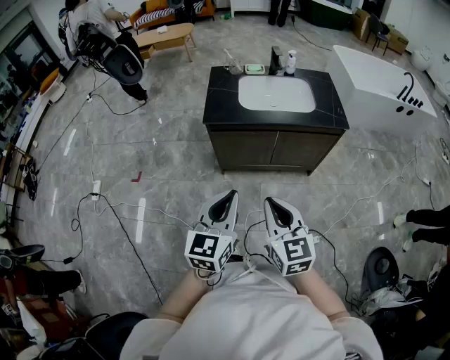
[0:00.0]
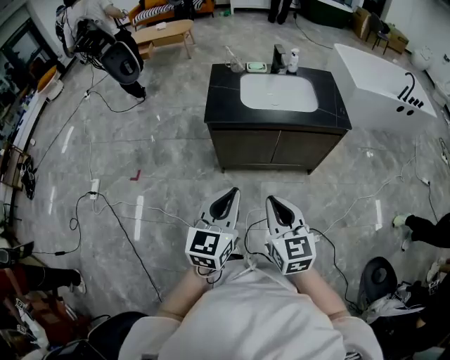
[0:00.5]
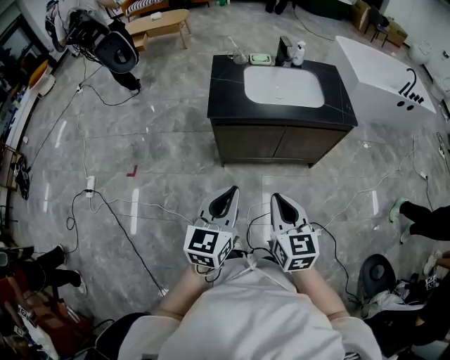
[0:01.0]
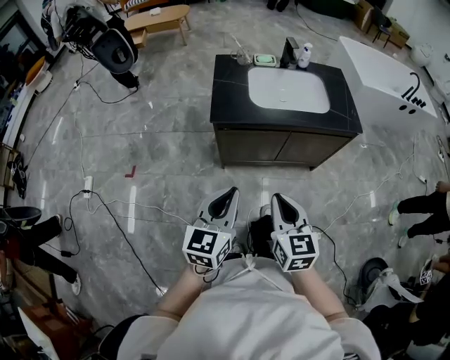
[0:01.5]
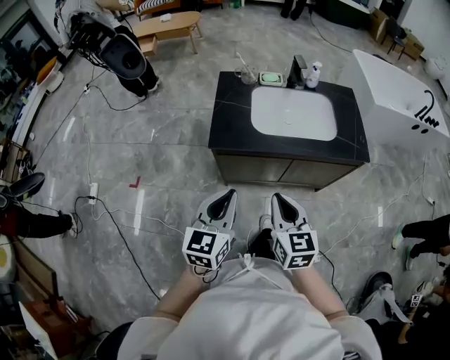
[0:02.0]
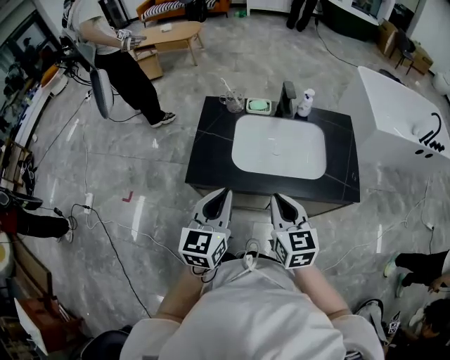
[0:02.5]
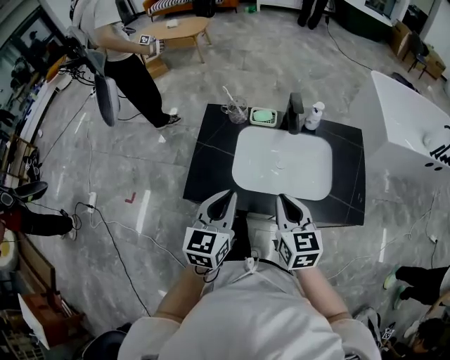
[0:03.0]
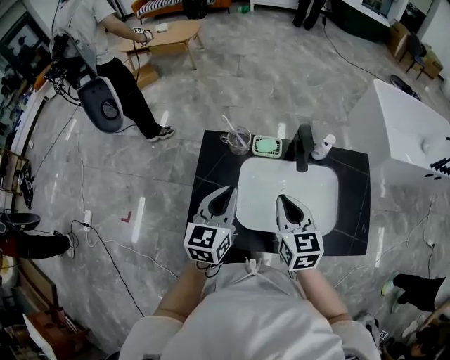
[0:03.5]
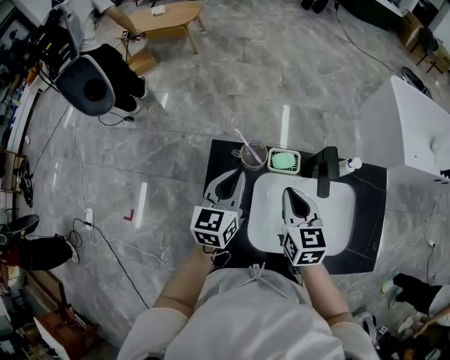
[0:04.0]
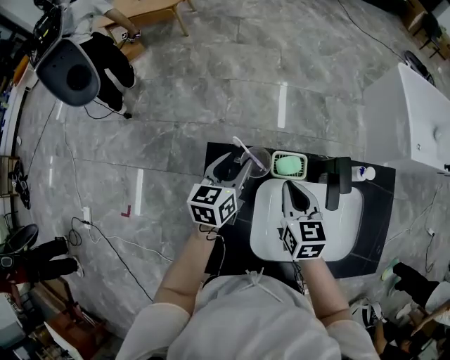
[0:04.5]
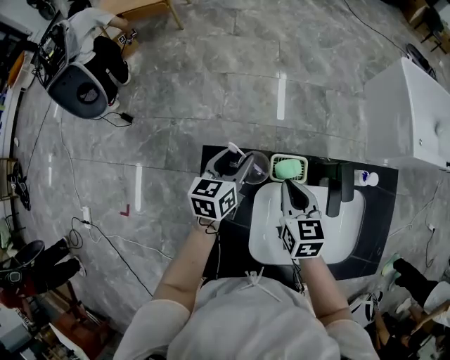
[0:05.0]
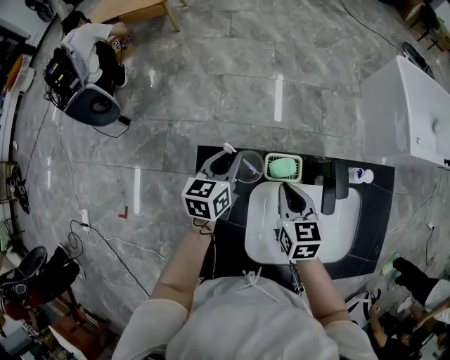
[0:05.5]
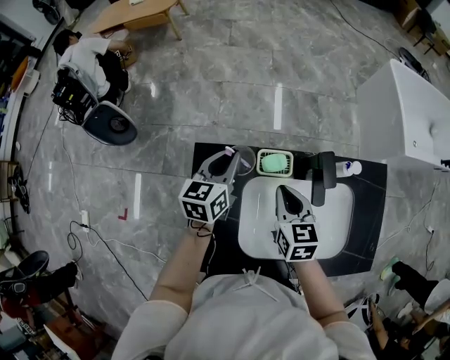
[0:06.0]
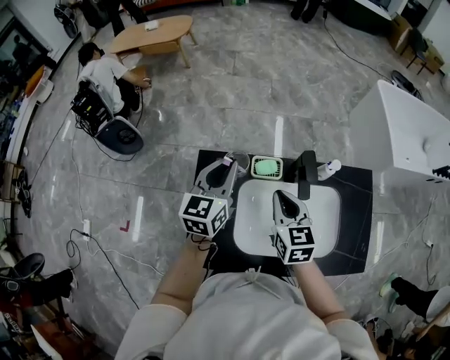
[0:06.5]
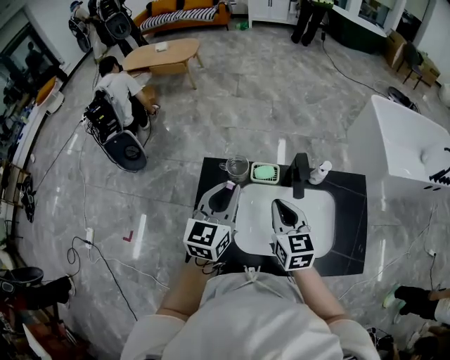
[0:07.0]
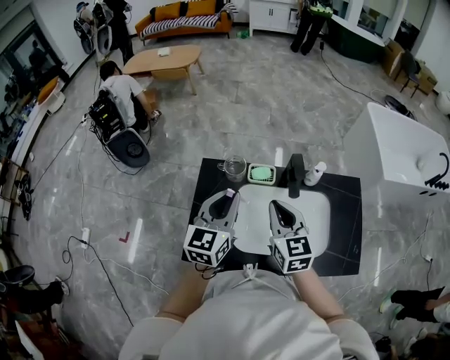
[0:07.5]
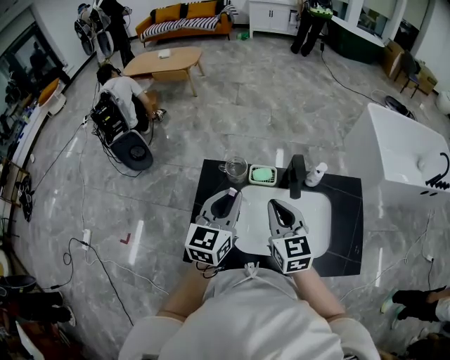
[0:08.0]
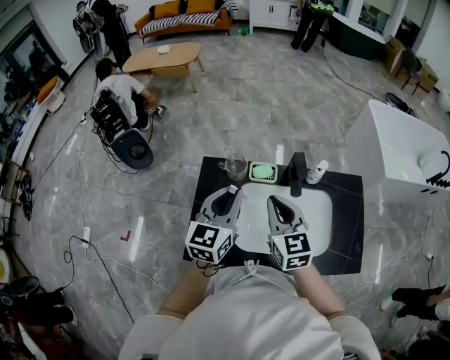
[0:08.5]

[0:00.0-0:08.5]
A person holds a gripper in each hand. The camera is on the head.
0:00.0 to 0:02.0: The grippers both shift forward by about 20 cm.
0:02.0 to 0:04.0: The pair of grippers is taken forward, some 50 cm.
0:04.0 to 0:06.5: The left gripper moves about 10 cm downward and comes back, and opens, then closes again. The right gripper moves some 10 cm downward and comes back.
0:06.5 to 0:08.5: The right gripper is displaced upward and backward by about 10 cm, while the left gripper moves backward, roughly 10 cm.

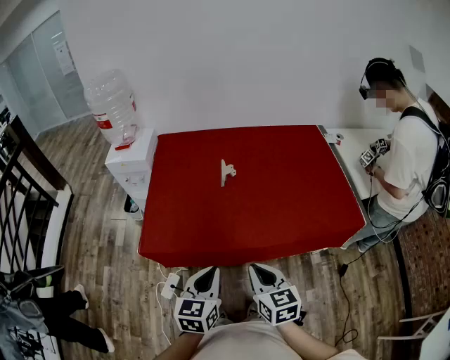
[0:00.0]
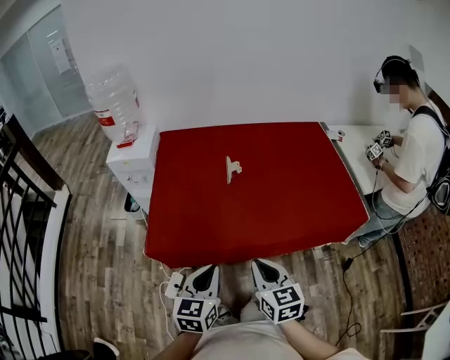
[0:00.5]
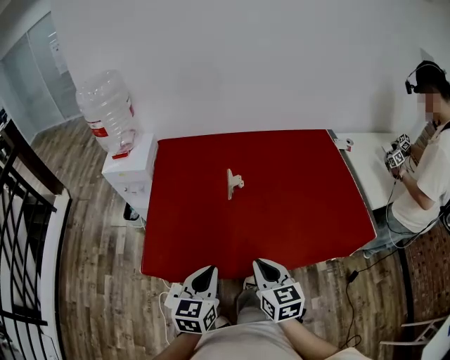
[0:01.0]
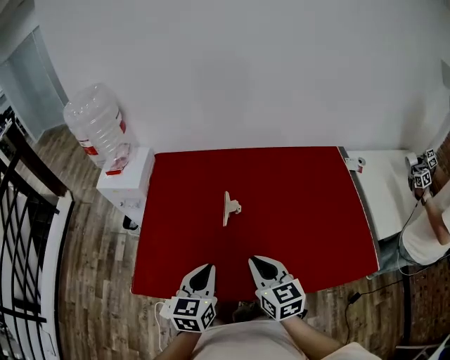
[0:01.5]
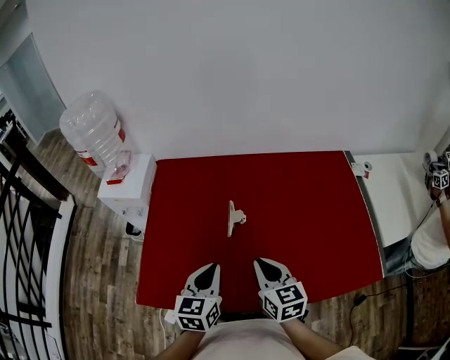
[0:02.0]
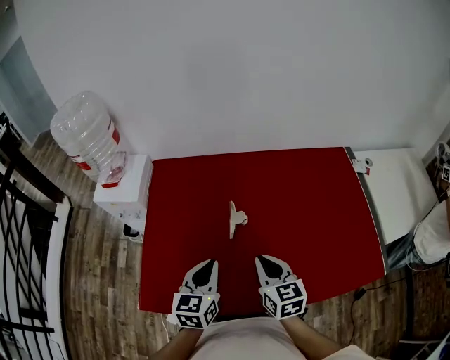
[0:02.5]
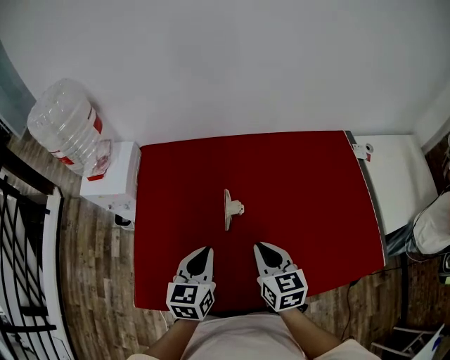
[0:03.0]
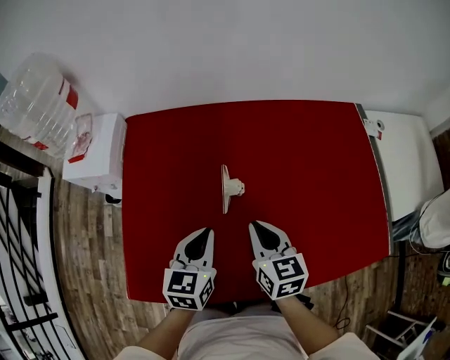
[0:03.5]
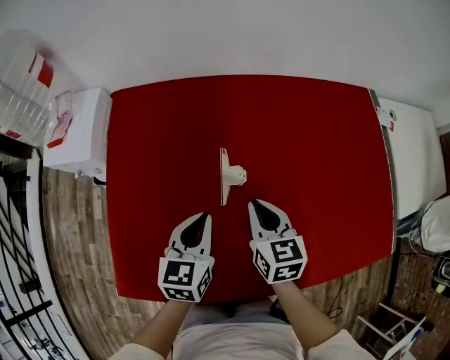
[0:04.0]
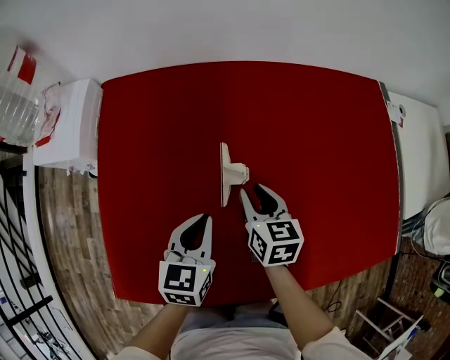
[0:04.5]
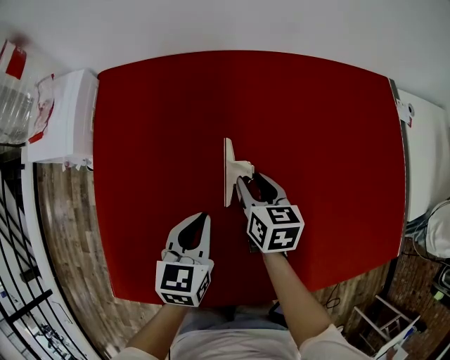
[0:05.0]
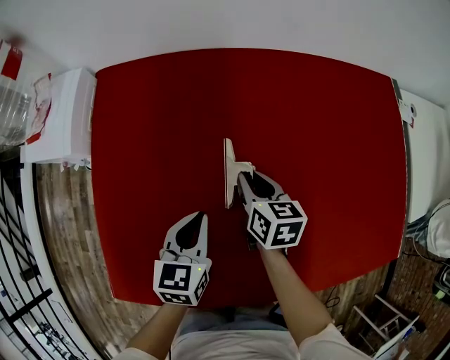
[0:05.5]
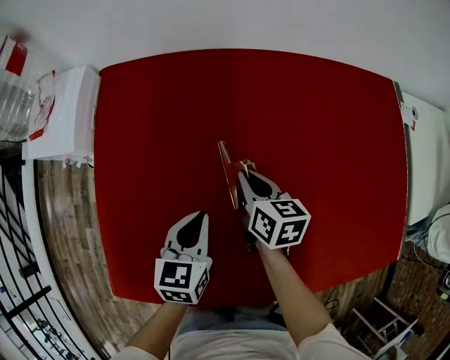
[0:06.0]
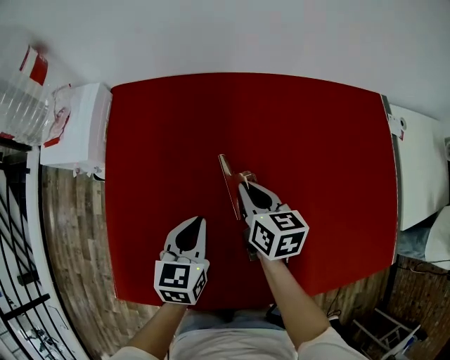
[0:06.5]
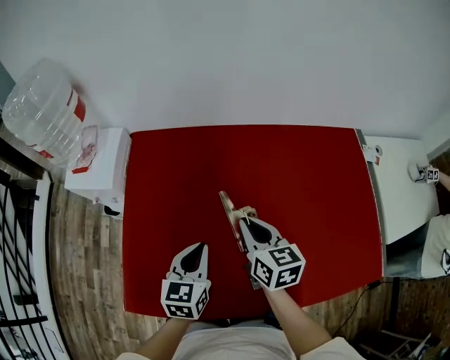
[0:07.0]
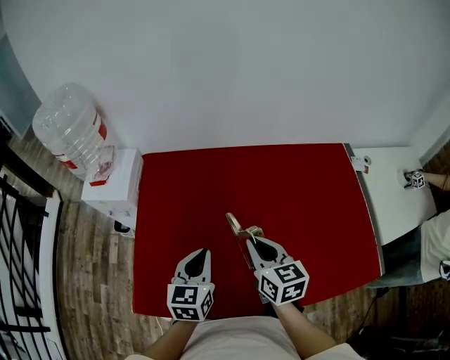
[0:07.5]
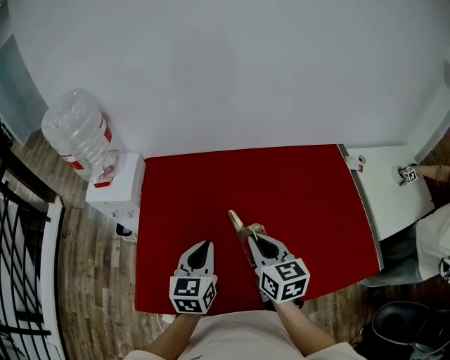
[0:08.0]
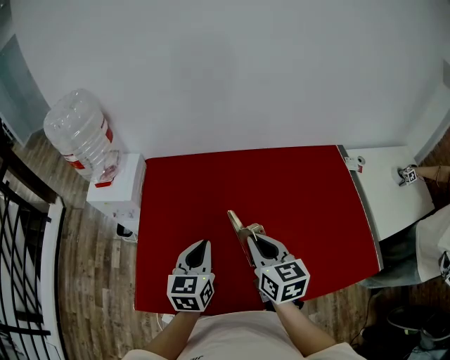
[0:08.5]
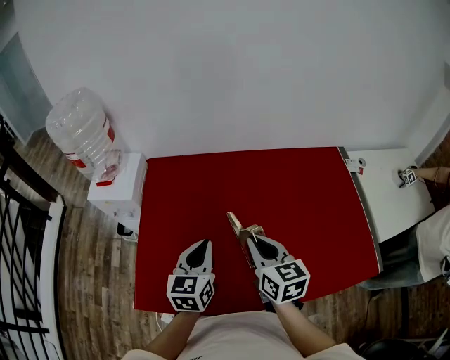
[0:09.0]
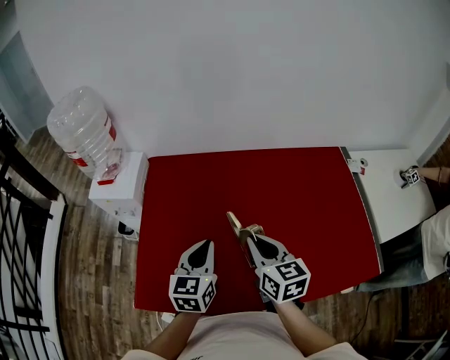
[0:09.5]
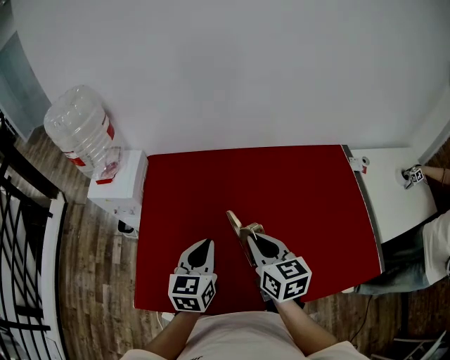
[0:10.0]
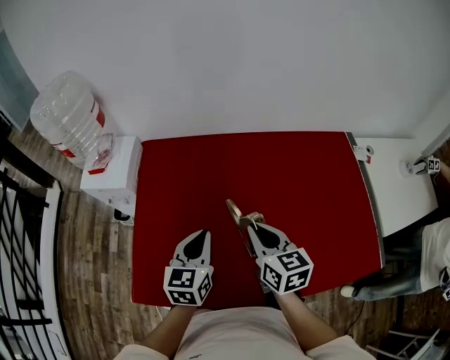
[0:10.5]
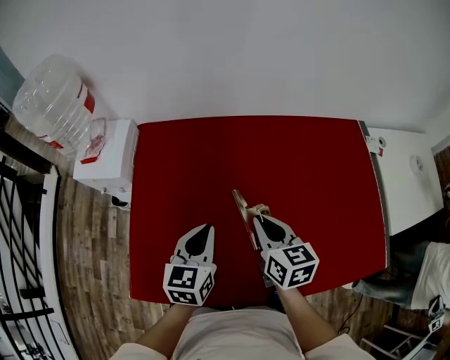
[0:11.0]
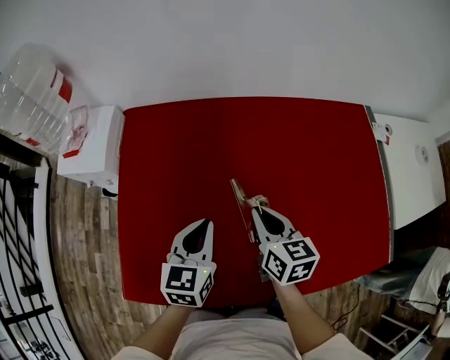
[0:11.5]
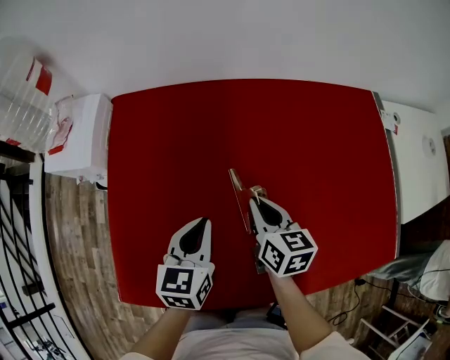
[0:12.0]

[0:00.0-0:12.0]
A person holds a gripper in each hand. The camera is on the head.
0:00.0 to 0:02.0: Both grippers travel together forward, some 30 cm.
0:02.0 to 0:04.0: Both grippers move forward and downward, roughly 20 cm.
0:04.0 to 0:06.0: The left gripper moves downward, approximately 10 cm; the right gripper goes roughly 10 cm downward and forward, and opens, then closes again.
0:06.0 to 0:08.0: The right gripper shifts some 30 cm upward and backward, and rotates approximately 20 degrees; the left gripper shifts approximately 25 cm upward.
0:08.0 to 0:10.0: Both grippers stay about where they are.
0:10.0 to 0:12.0: The two grippers go roughly 20 cm downward and forward.

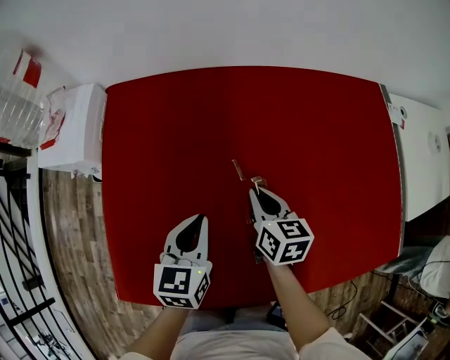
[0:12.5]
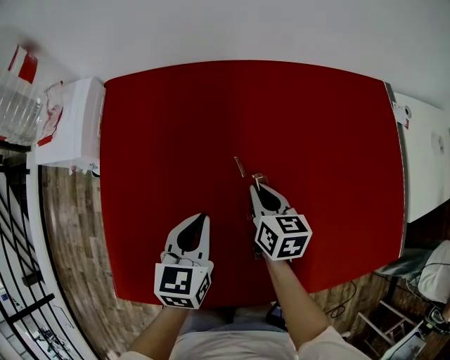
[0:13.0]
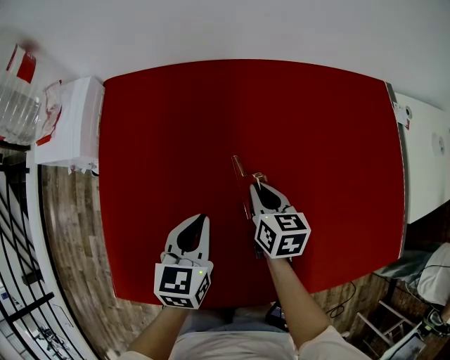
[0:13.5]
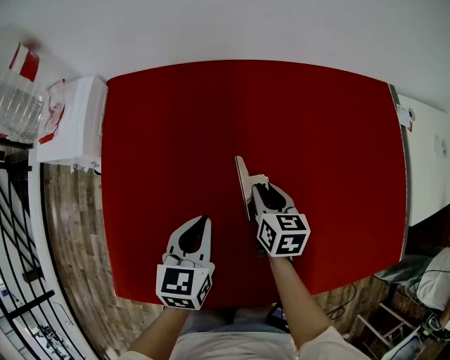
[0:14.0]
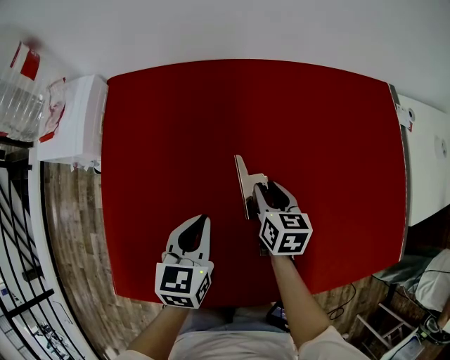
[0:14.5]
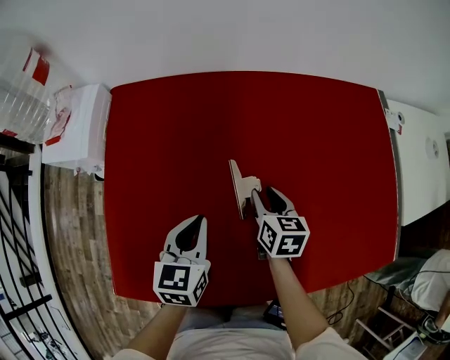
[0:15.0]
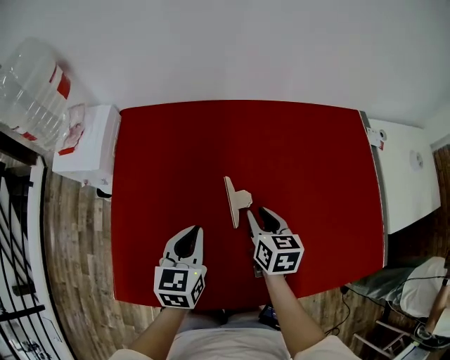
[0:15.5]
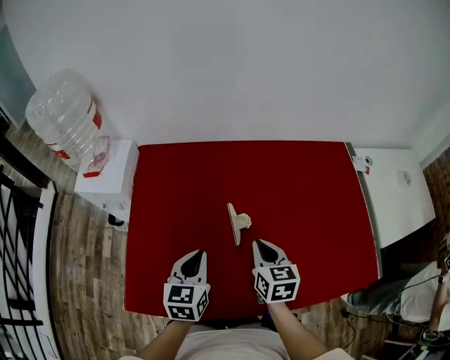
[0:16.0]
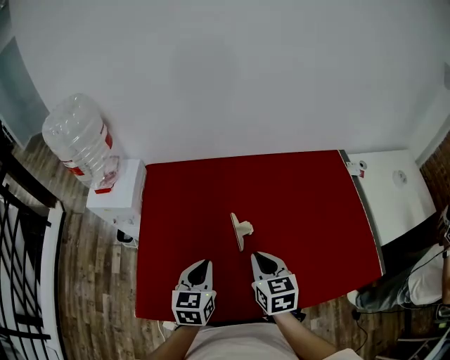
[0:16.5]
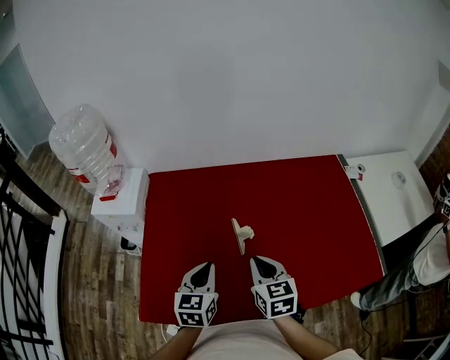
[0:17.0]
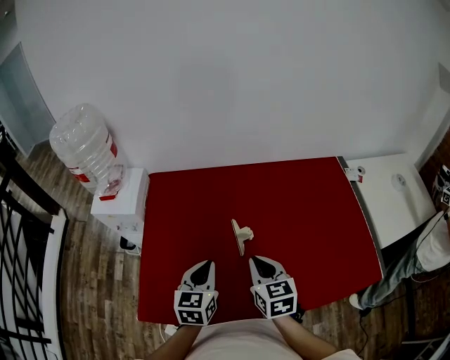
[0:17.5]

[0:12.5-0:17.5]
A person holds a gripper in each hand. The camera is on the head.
0:12.5 to 0:15.0: The right gripper opens its fingers.
0:15.0 to 0:17.5: The left gripper shifts some 15 cm upward and backward; the right gripper is displaced upward and backward by roughly 25 cm, and closes.

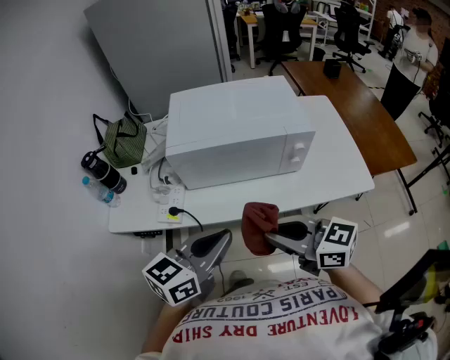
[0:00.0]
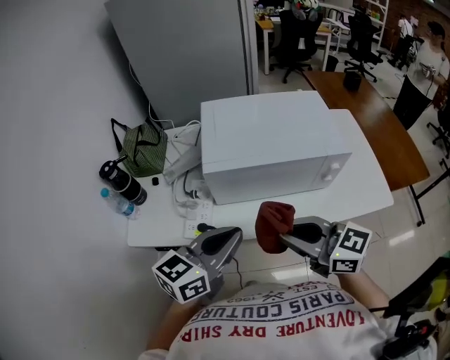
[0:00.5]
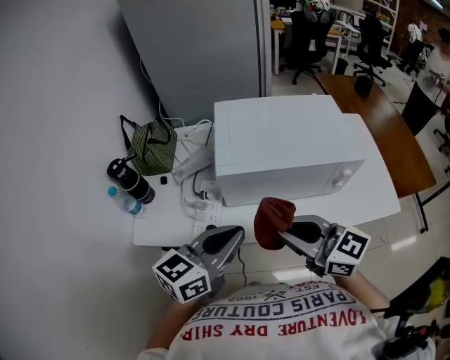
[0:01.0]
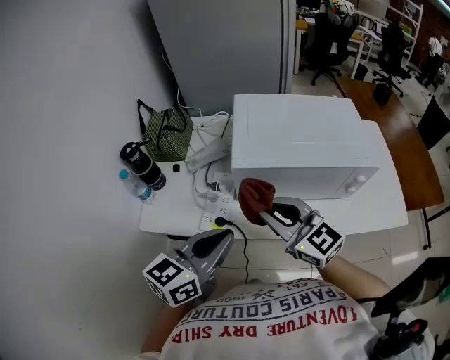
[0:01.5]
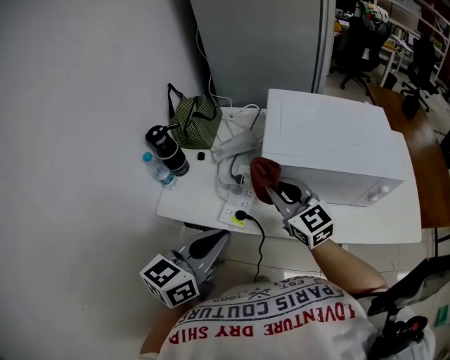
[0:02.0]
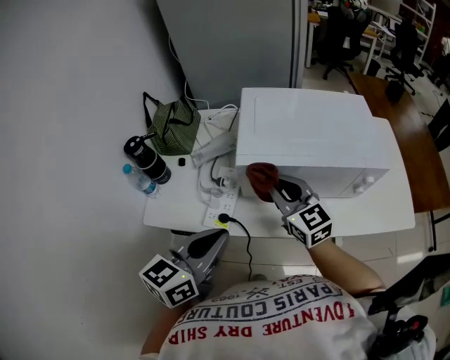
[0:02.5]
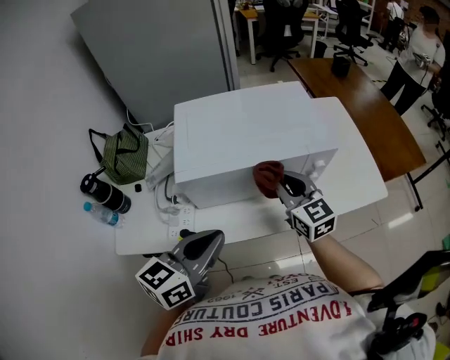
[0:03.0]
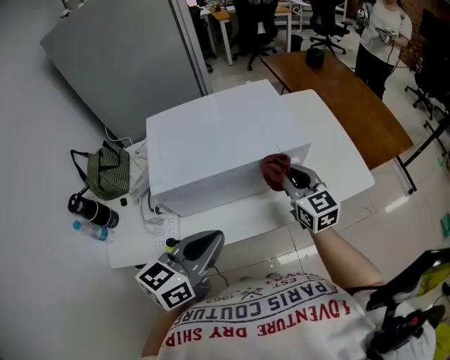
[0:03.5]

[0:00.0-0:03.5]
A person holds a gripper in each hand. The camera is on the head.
0:00.0 to 0:02.0: The right gripper is displaced forward and to the left by approximately 30 cm, and turns by some 30 degrees. The left gripper moves to the left, some 20 cm.
0:02.0 to 0:03.5: The left gripper changes place by about 20 cm, and swivels some 20 degrees. The right gripper changes place by roughly 35 cm, and changes its angle by about 40 degrees.
